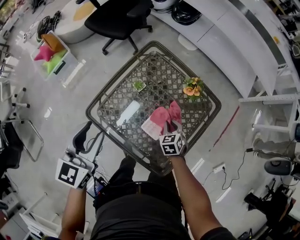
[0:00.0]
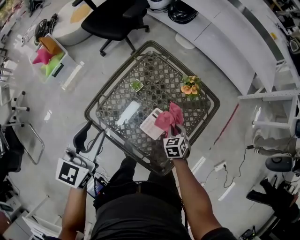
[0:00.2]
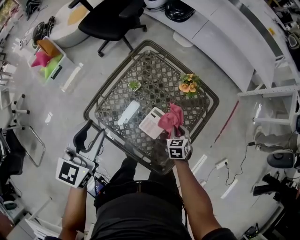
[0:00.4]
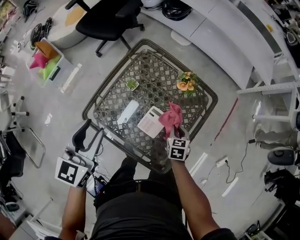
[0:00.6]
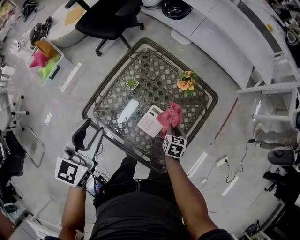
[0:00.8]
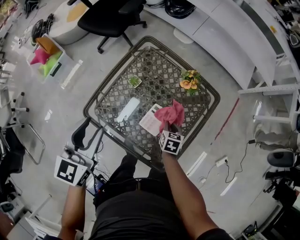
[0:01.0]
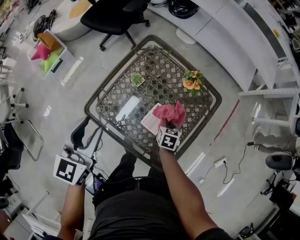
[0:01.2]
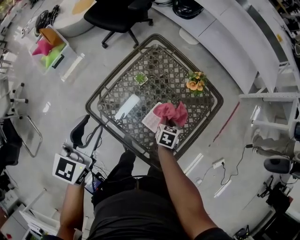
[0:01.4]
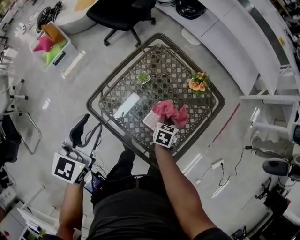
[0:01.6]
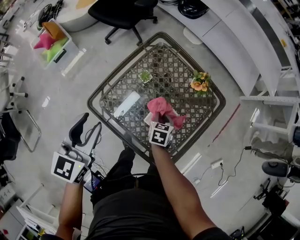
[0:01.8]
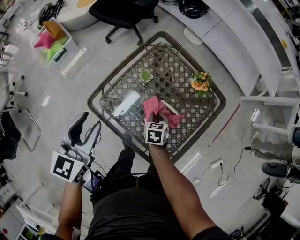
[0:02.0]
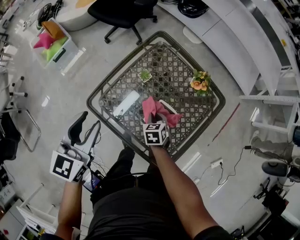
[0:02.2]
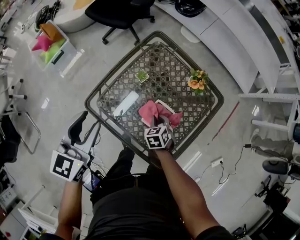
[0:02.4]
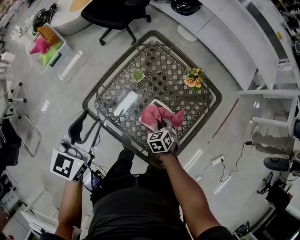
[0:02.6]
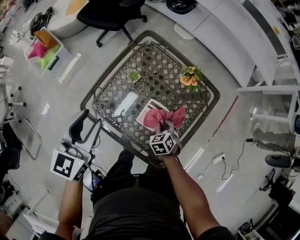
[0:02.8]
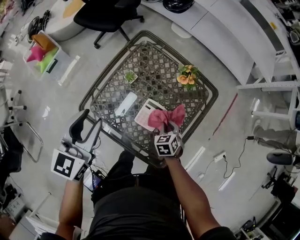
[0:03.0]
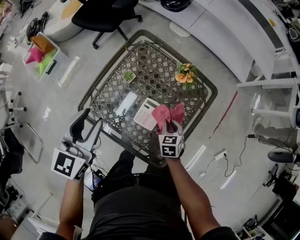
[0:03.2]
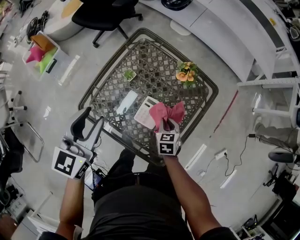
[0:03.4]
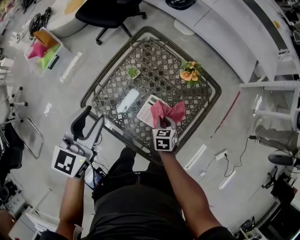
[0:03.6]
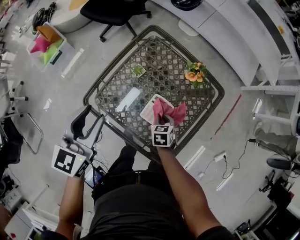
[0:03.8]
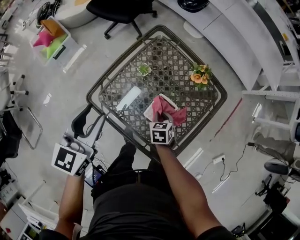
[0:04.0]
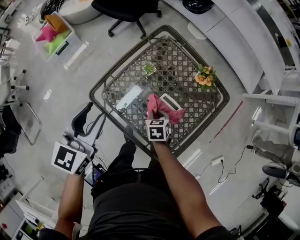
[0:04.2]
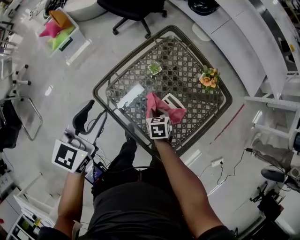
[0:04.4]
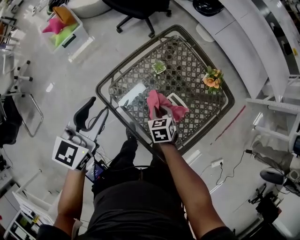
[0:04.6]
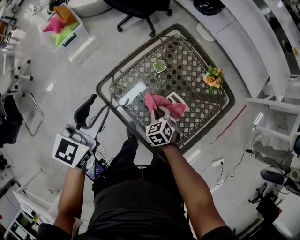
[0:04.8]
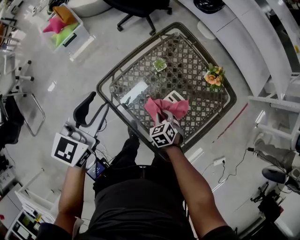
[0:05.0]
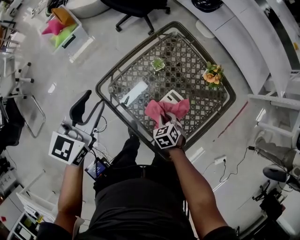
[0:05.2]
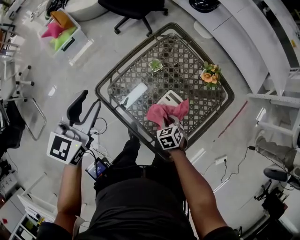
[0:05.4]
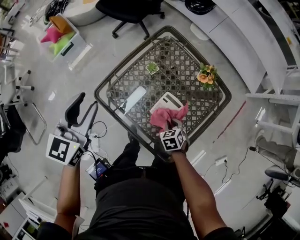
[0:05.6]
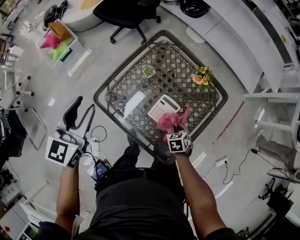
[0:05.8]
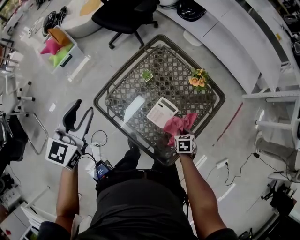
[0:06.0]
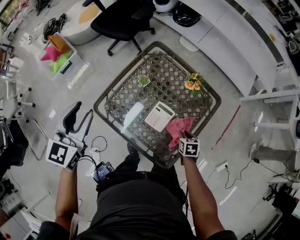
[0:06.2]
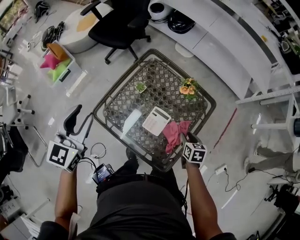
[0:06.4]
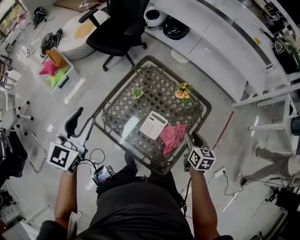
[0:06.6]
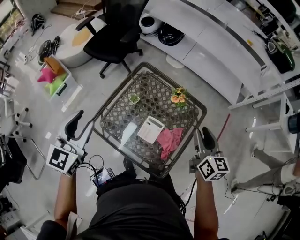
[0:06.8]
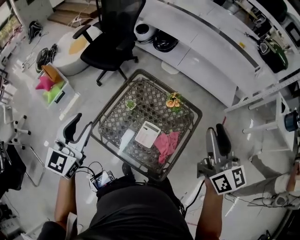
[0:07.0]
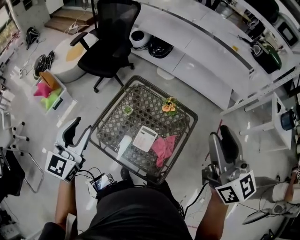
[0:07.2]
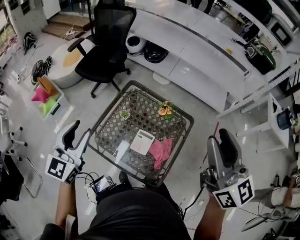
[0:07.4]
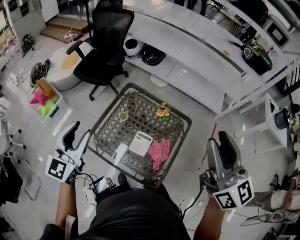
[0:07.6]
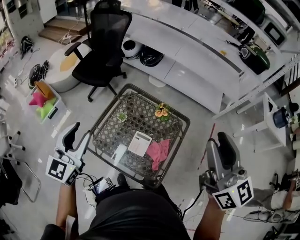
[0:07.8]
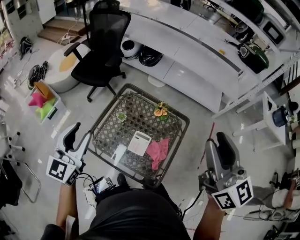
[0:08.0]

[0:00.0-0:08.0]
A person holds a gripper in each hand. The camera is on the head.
0:00.0 to 0:01.6: The right gripper goes to the right and returns, approximately 5 cm each way, and rotates roughly 30 degrees.
0:01.6 to 0:03.2: Both grippers move to the right, roughly 5 cm.
0:03.2 to 0:04.8: The right gripper moves to the left, about 15 cm, and swivels roughly 30 degrees. The left gripper heads to the left, covering some 10 cm.
0:04.8 to 0:06.4: The right gripper is displaced to the right by approximately 25 cm, and twists roughly 50 degrees clockwise, seen from behind, while the left gripper goes some 10 cm upward.
0:06.4 to 0:08.0: The right gripper goes about 50 cm upward, and tilts its fingers approximately 60 degrees upward, while the left gripper shifts about 10 cm upward.

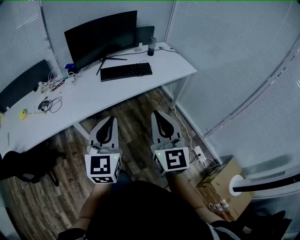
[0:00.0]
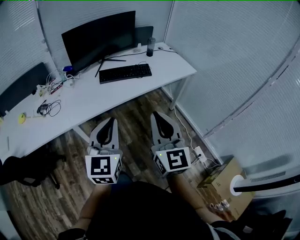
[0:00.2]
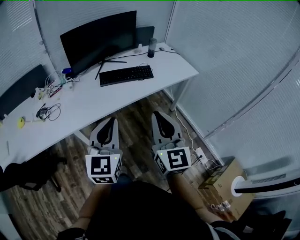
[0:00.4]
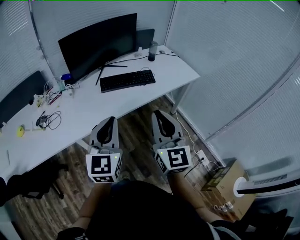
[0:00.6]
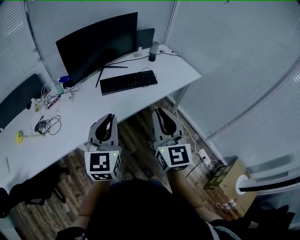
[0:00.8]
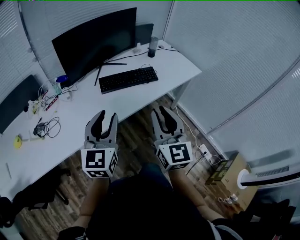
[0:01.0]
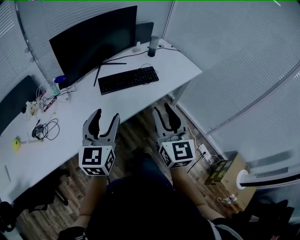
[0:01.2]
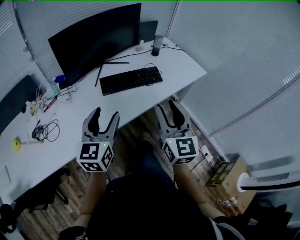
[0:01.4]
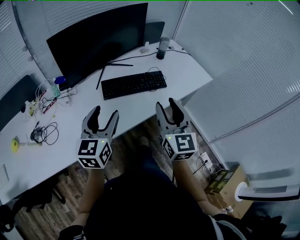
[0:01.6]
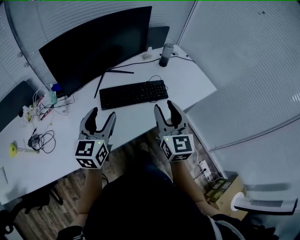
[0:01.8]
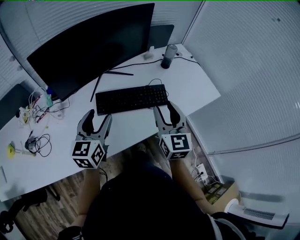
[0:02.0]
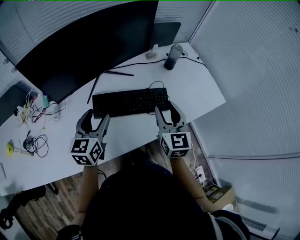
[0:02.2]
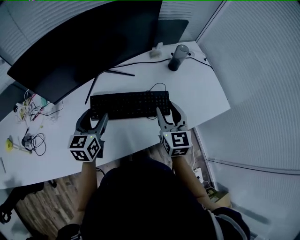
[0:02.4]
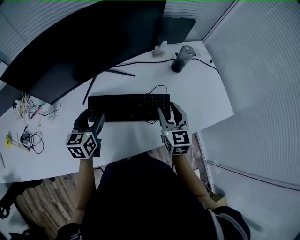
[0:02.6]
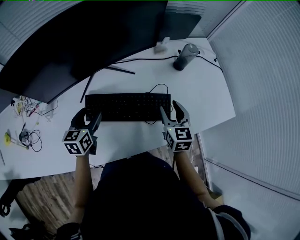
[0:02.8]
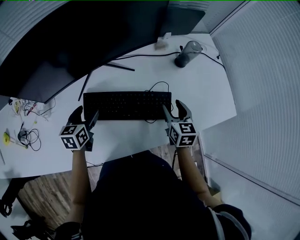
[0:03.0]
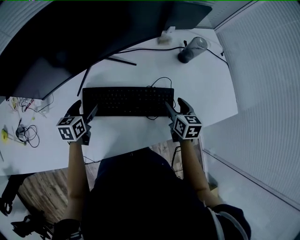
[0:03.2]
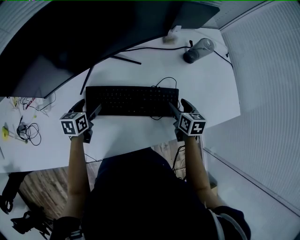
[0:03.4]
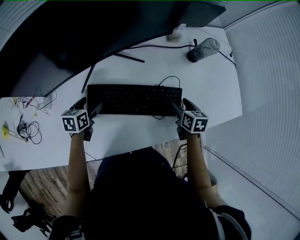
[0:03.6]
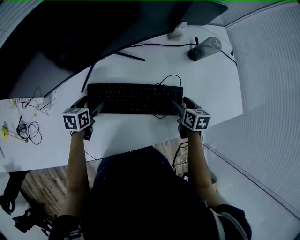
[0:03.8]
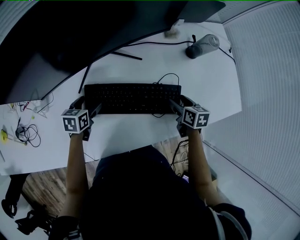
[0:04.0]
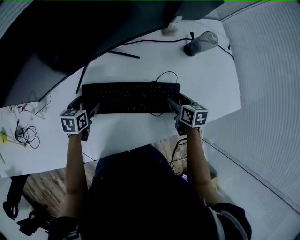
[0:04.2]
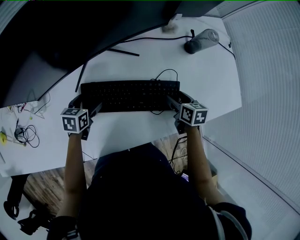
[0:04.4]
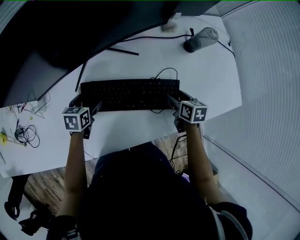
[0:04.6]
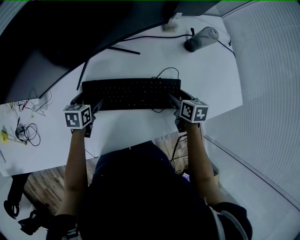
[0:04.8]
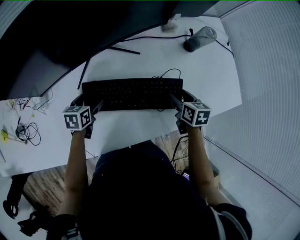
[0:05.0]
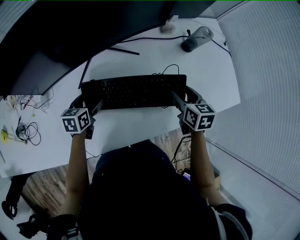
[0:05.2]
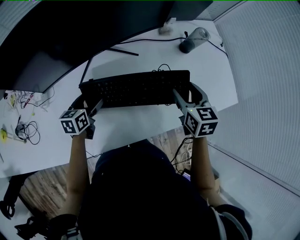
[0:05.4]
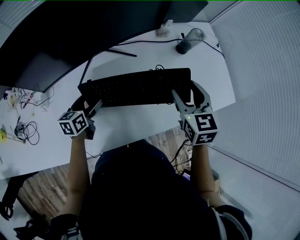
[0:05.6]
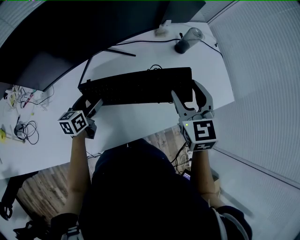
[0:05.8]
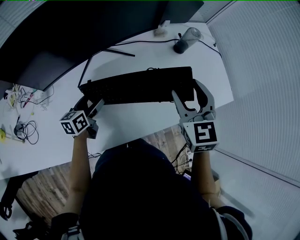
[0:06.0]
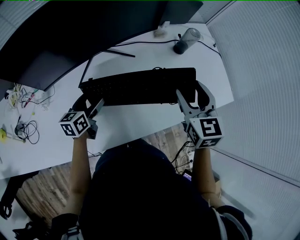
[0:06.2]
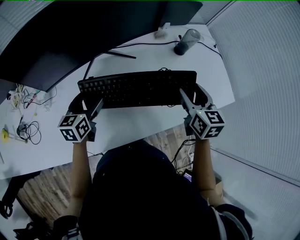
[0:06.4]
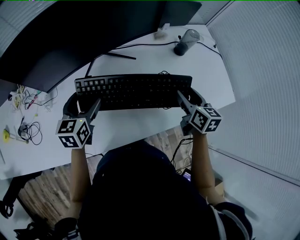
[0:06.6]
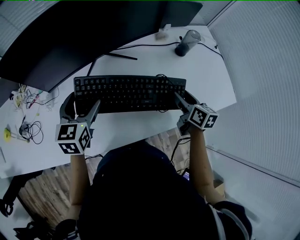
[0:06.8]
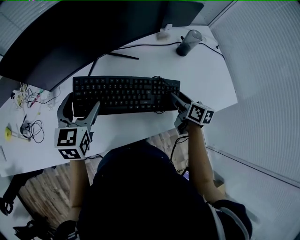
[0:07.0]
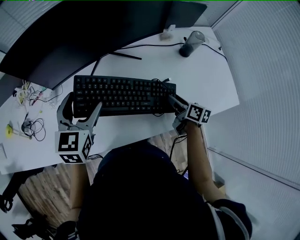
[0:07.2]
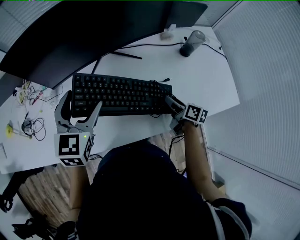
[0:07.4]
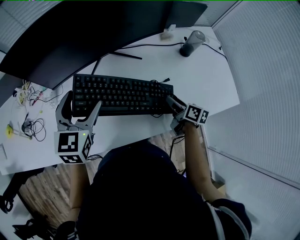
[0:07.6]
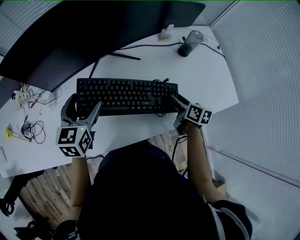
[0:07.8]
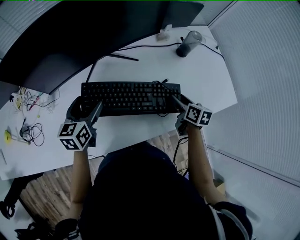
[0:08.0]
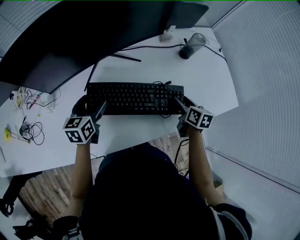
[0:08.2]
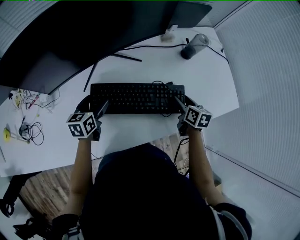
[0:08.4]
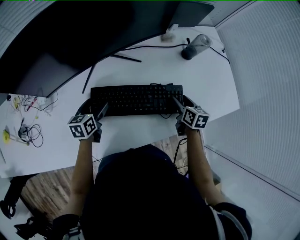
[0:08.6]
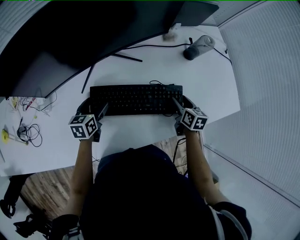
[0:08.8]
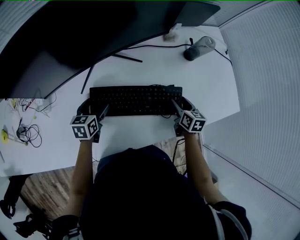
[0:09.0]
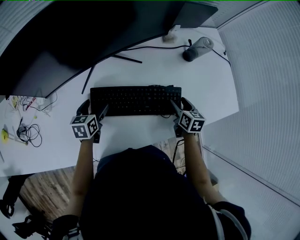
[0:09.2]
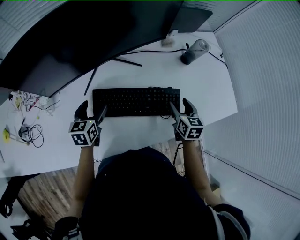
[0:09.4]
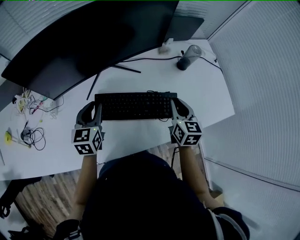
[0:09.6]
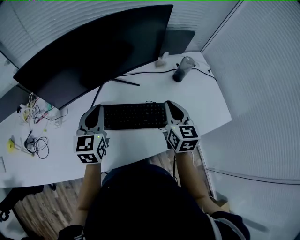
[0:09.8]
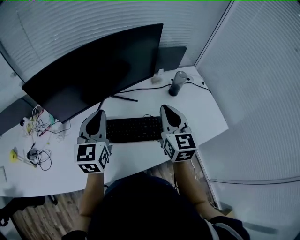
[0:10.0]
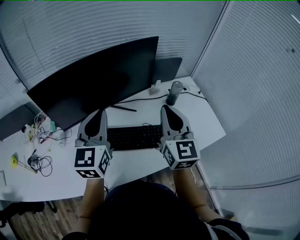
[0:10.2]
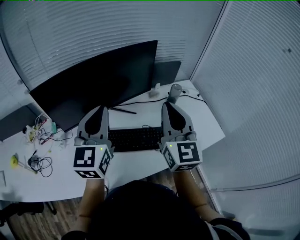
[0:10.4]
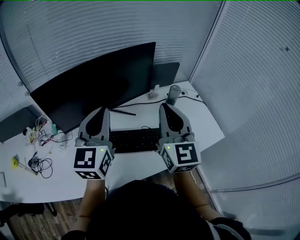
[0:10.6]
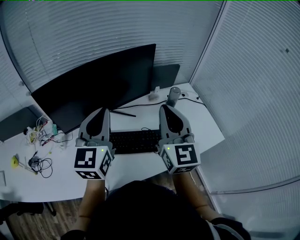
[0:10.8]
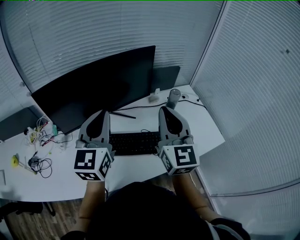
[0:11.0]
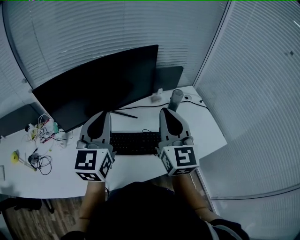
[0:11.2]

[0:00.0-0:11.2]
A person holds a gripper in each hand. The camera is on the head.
0:00.0 to 0:01.6: The right gripper shifts some 30 cm forward, and opens up, while the left gripper shifts about 35 cm forward and to the left, and opens up.
0:01.6 to 0:03.2: The left gripper goes approximately 40 cm forward and downward, and tilts its fingers some 30 degrees downward. Meanwhile the right gripper goes some 50 cm forward, downward and to the right, and angles its fingers downward, by roughly 40 degrees.
0:03.2 to 0:04.8: Both grippers move downward, some 5 cm.
0:04.8 to 0:06.4: The two grippers go approximately 15 cm upward. The left gripper rotates about 30 degrees. The right gripper swivels approximately 30 degrees.
0:06.4 to 0:08.0: The right gripper shifts roughly 15 cm downward, and turns by approximately 30 degrees. The left gripper travels upward and back again, approximately 15 cm each way.
0:08.0 to 0:09.6: The left gripper moves about 15 cm downward and comes back, and closes its fingers. Meanwhile the right gripper travels upward by approximately 10 cm, rotates about 30 degrees, and closes its fingers.
0:09.6 to 0:11.2: Both grippers travel together upward, about 25 cm. The left gripper turns by some 30 degrees; the right gripper points its fingers about 30 degrees further upward.

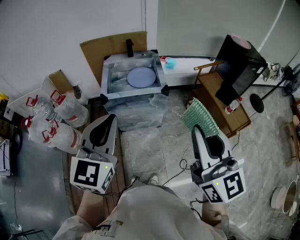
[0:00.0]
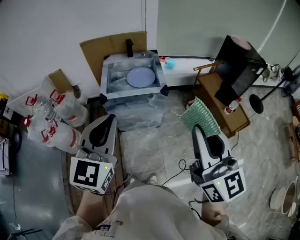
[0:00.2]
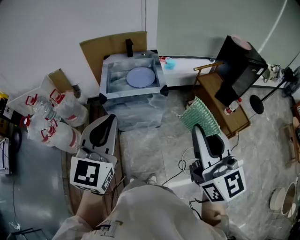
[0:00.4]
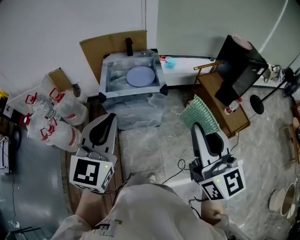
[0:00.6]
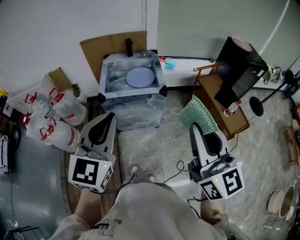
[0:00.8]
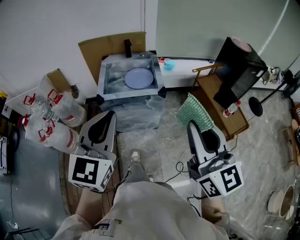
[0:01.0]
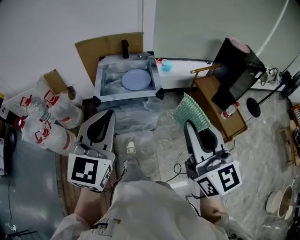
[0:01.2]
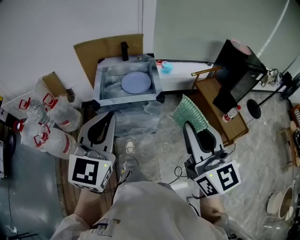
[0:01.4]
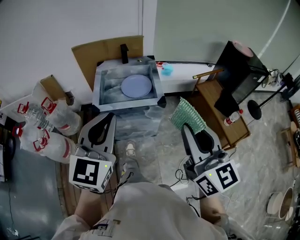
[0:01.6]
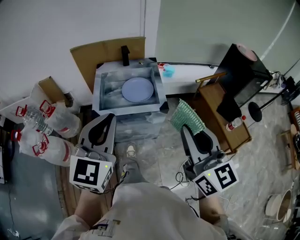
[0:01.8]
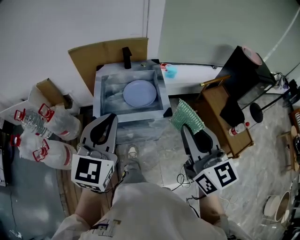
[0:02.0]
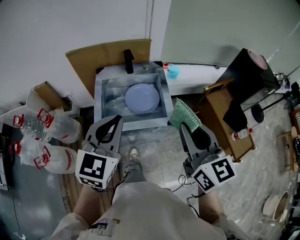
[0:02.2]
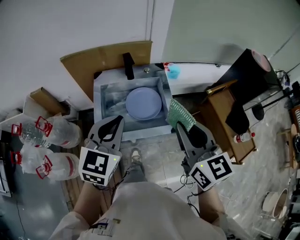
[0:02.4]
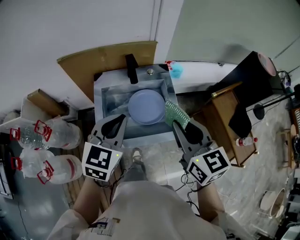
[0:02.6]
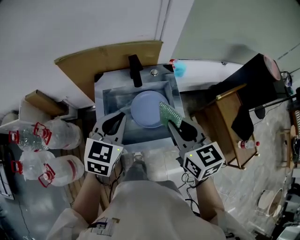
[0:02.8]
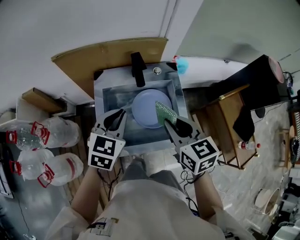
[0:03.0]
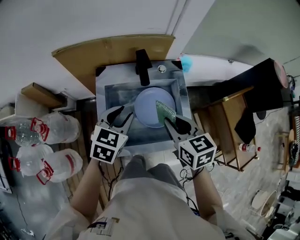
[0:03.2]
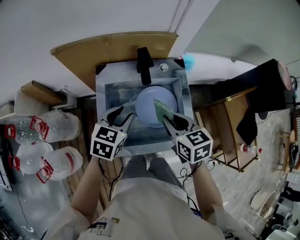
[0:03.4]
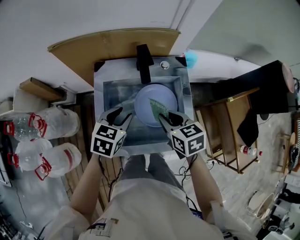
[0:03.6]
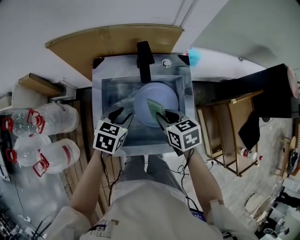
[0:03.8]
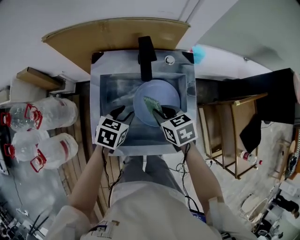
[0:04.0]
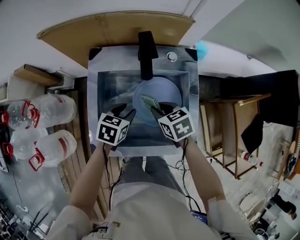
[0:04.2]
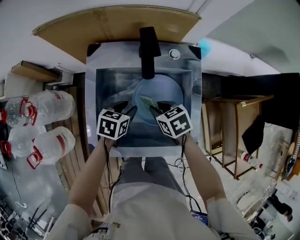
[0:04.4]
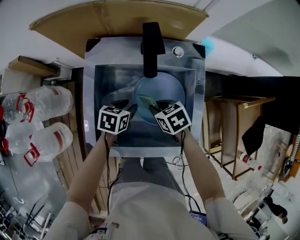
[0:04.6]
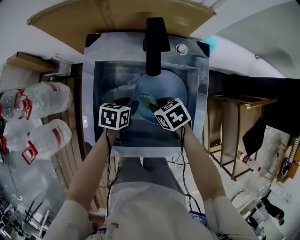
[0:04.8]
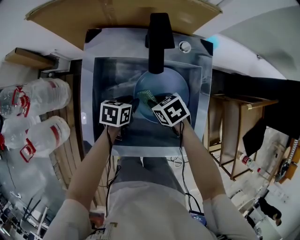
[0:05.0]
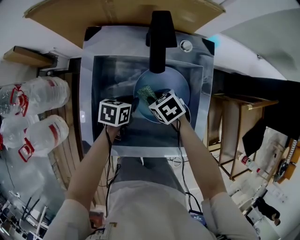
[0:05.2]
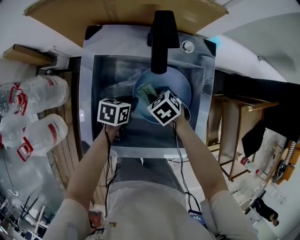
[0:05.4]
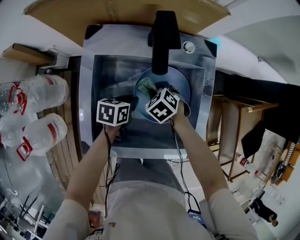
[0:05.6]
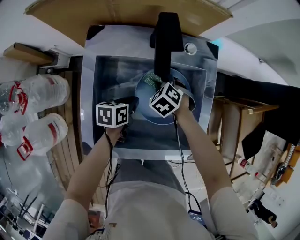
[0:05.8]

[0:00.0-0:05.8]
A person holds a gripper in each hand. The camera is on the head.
0:00.0 to 0:01.4: Both grippers travel together forward, about 5 cm.
0:01.4 to 0:02.8: The two grippers travel together, forward, approximately 50 cm. The left gripper swivels about 30 degrees. The right gripper swivels approximately 30 degrees.
0:02.8 to 0:04.4: Both grippers move downward, about 30 cm. The left gripper swivels roughly 40 degrees, and opens its fingers, while the right gripper tilts its fingers about 30 degrees downward.
0:04.4 to 0:05.8: Both grippers travel together downward, roughly 10 cm. The right gripper swivels about 40 degrees. The left gripper changes its angle by roughly 20 degrees, and closes its fingers.
